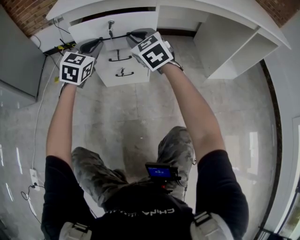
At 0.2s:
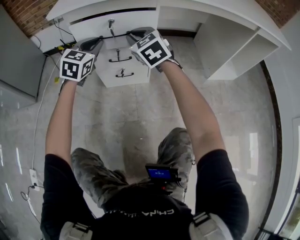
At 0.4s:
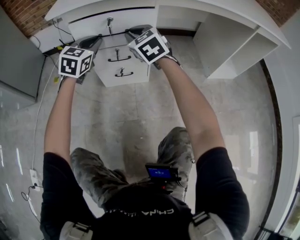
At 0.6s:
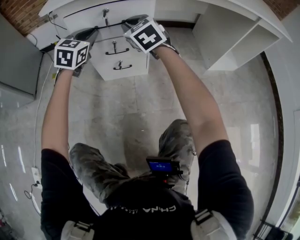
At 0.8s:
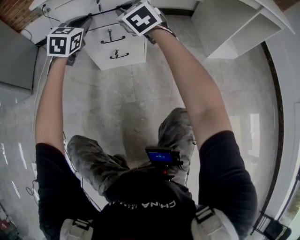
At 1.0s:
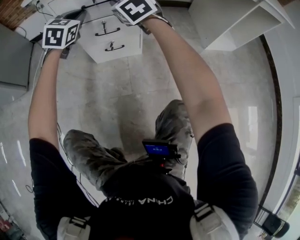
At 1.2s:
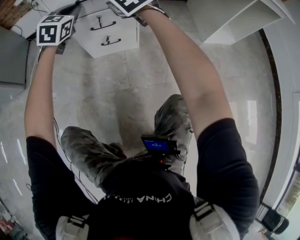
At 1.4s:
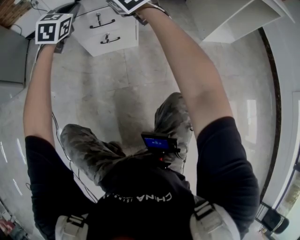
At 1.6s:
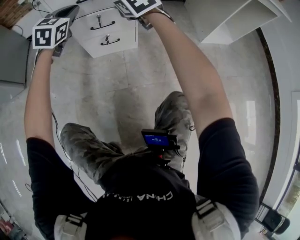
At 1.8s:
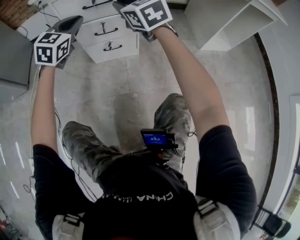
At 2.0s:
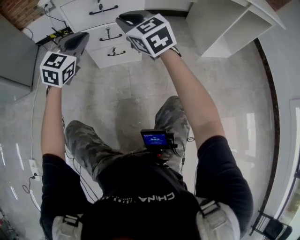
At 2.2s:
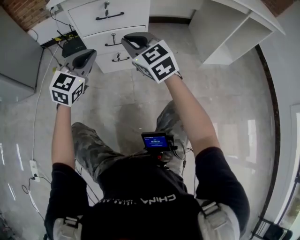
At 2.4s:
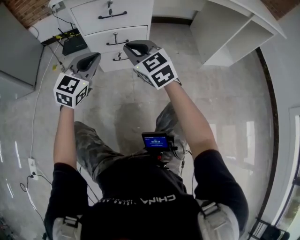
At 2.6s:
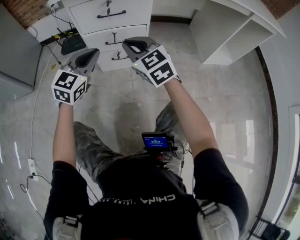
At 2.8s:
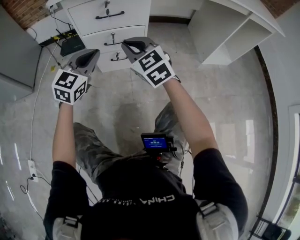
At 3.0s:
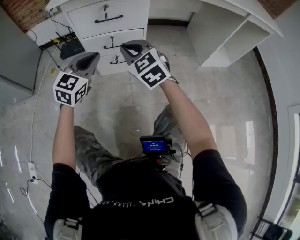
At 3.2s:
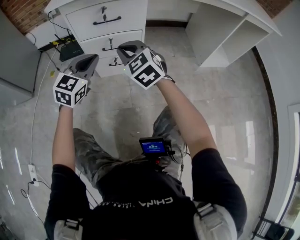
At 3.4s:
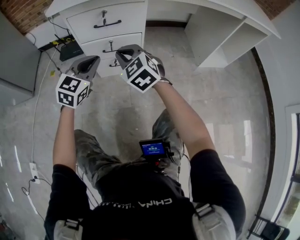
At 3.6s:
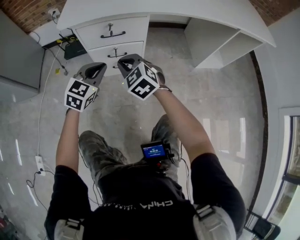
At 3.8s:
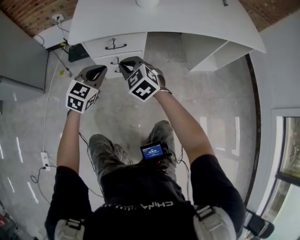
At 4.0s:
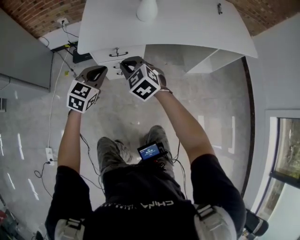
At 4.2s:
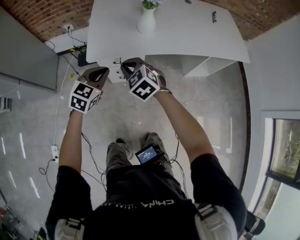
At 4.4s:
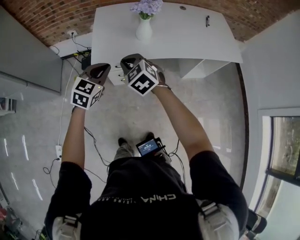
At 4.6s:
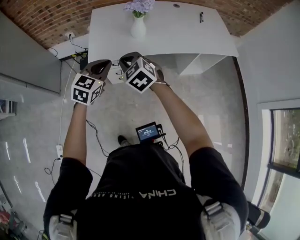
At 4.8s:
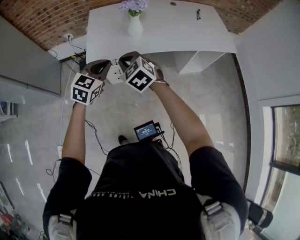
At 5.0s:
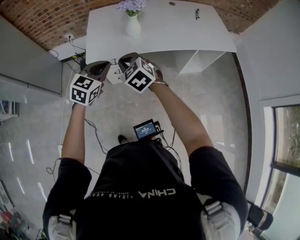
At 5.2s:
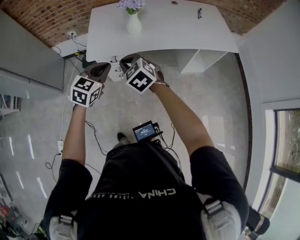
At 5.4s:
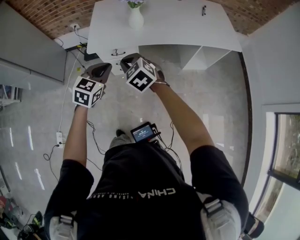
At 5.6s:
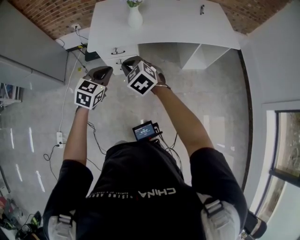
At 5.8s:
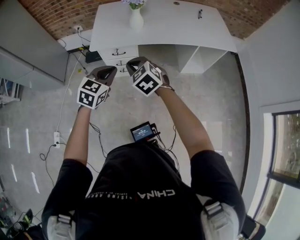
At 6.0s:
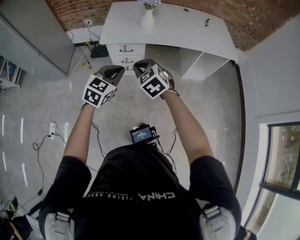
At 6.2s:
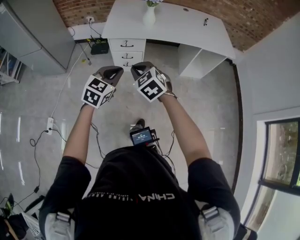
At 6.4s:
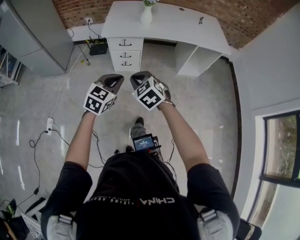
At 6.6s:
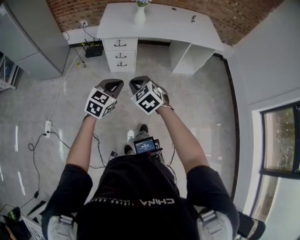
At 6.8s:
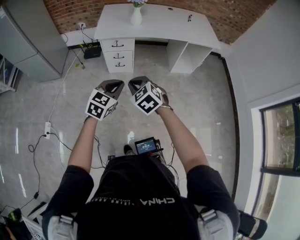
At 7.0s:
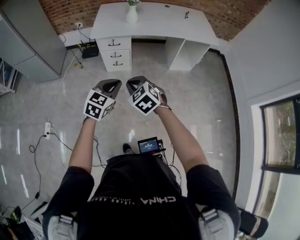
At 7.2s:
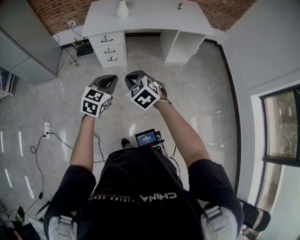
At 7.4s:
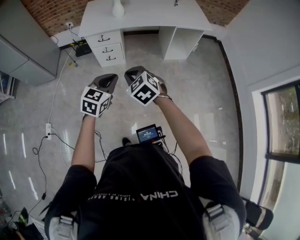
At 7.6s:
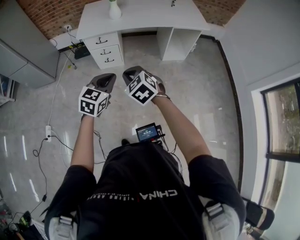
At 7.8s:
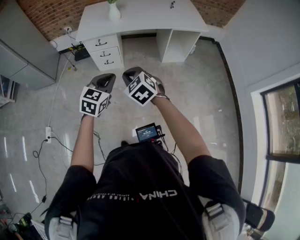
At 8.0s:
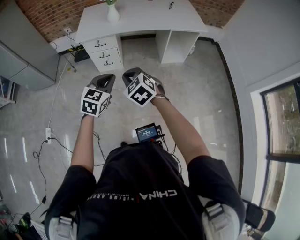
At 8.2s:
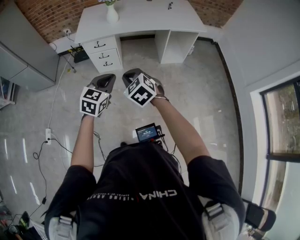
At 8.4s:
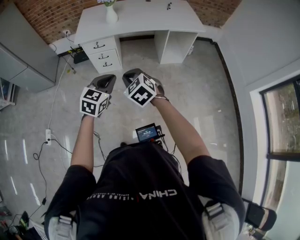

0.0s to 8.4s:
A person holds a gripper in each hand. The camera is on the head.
0.0s to 1.4s: The grippers stay close to where they were, moving slightly.
1.4s to 2.8s: Both grippers travel together backward, some 15 cm.
2.8s to 4.2s: The two grippers go some 40 cm upward.
4.2s to 5.6s: Both grippers move backward, to the right and upward, approximately 20 cm.
5.6s to 7.0s: Both grippers travel together backward, some 35 cm.
7.0s to 8.4s: Both grippers move to the right, approximately 10 cm.

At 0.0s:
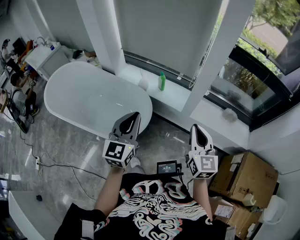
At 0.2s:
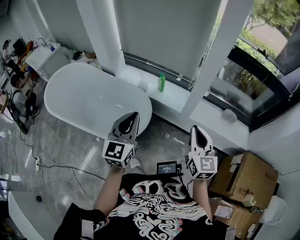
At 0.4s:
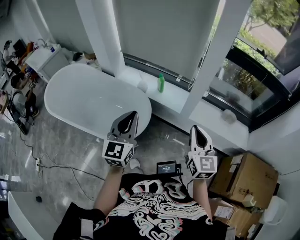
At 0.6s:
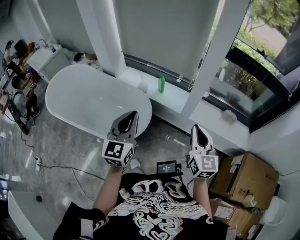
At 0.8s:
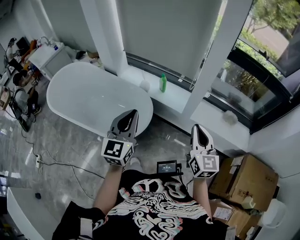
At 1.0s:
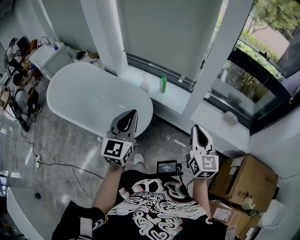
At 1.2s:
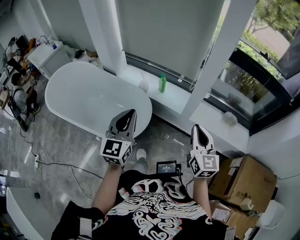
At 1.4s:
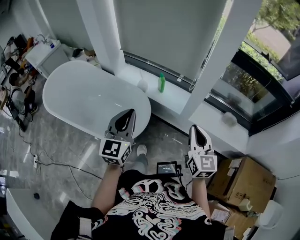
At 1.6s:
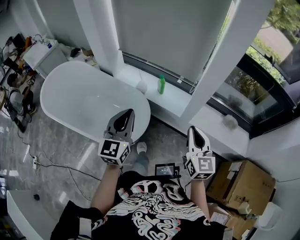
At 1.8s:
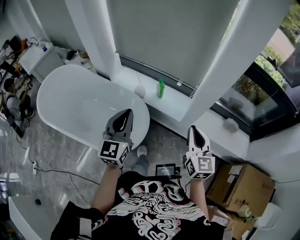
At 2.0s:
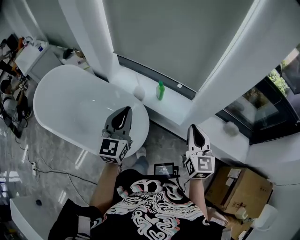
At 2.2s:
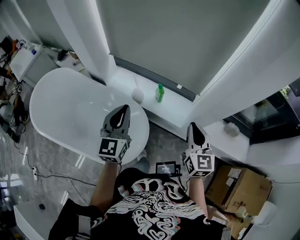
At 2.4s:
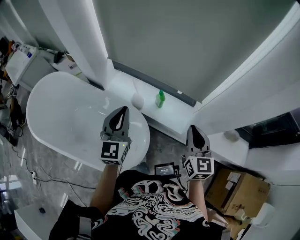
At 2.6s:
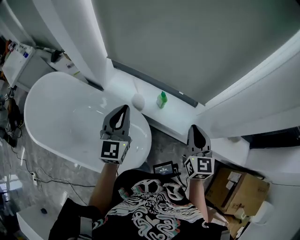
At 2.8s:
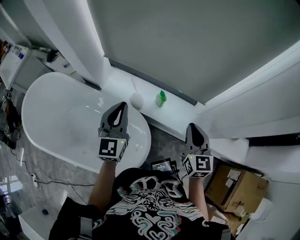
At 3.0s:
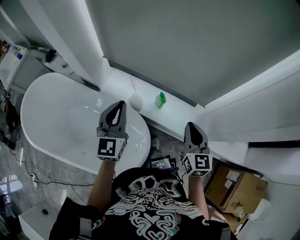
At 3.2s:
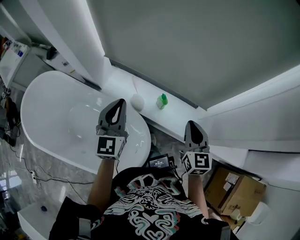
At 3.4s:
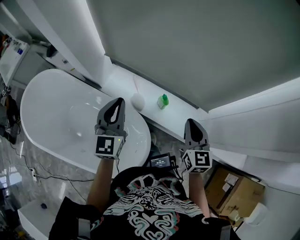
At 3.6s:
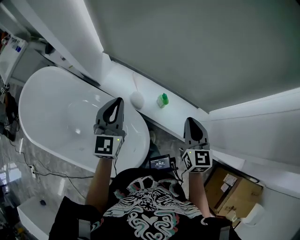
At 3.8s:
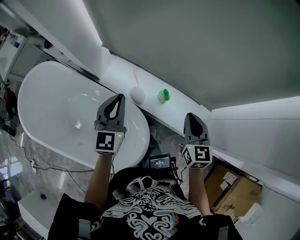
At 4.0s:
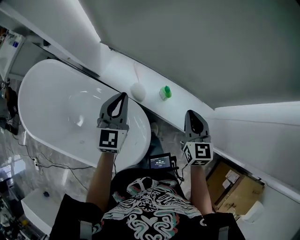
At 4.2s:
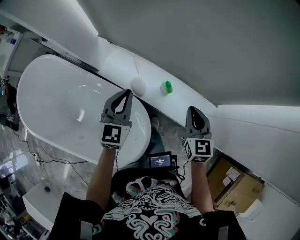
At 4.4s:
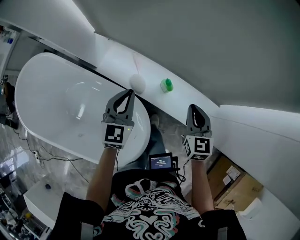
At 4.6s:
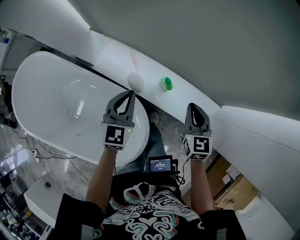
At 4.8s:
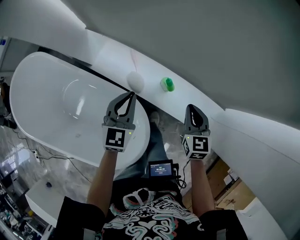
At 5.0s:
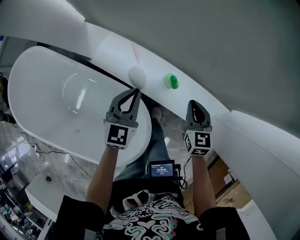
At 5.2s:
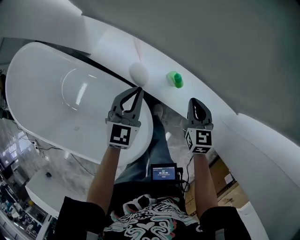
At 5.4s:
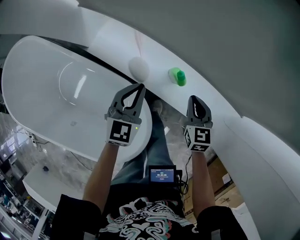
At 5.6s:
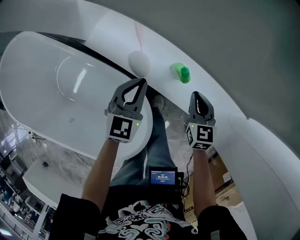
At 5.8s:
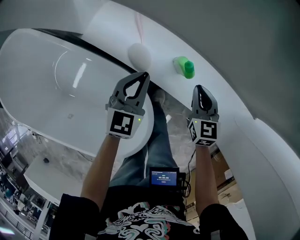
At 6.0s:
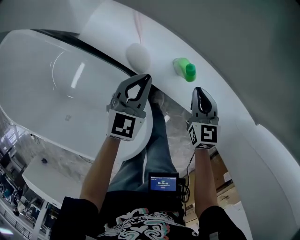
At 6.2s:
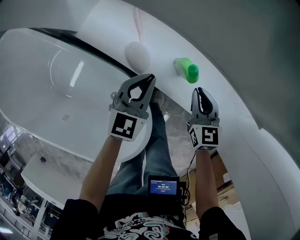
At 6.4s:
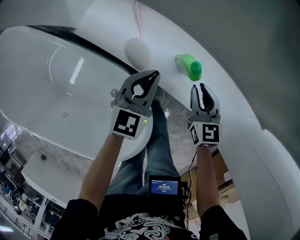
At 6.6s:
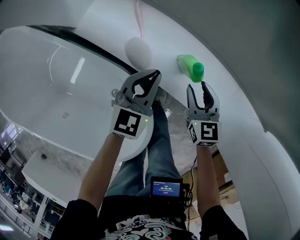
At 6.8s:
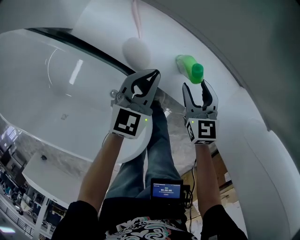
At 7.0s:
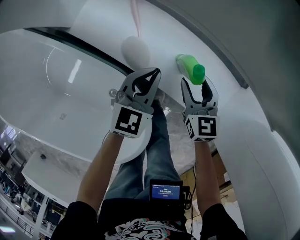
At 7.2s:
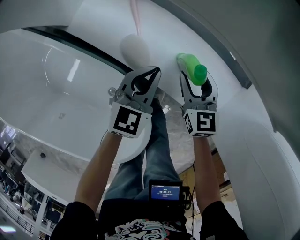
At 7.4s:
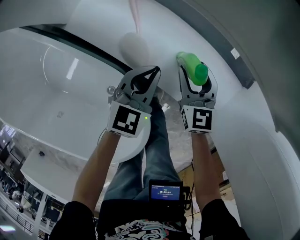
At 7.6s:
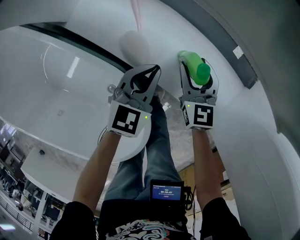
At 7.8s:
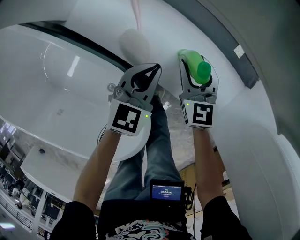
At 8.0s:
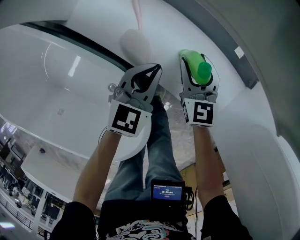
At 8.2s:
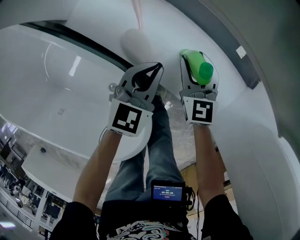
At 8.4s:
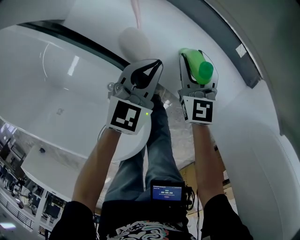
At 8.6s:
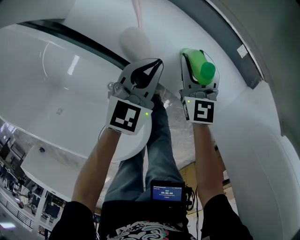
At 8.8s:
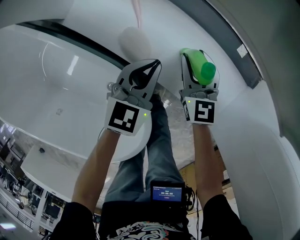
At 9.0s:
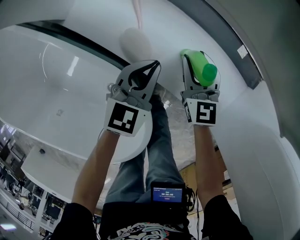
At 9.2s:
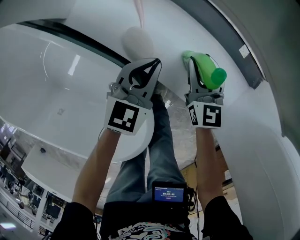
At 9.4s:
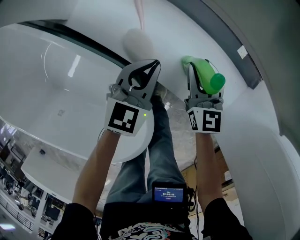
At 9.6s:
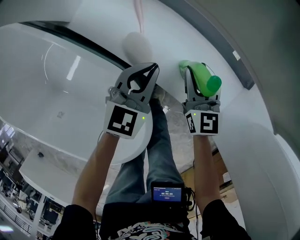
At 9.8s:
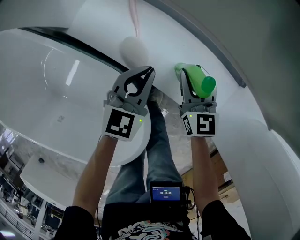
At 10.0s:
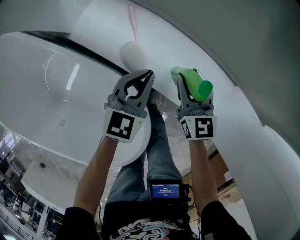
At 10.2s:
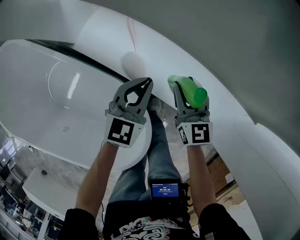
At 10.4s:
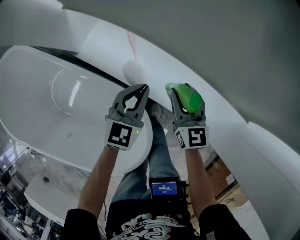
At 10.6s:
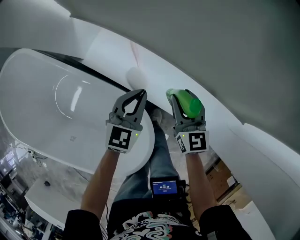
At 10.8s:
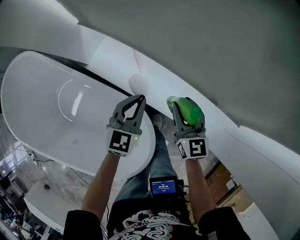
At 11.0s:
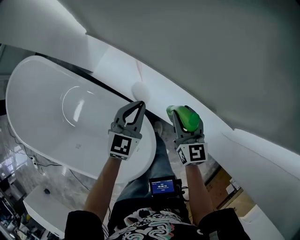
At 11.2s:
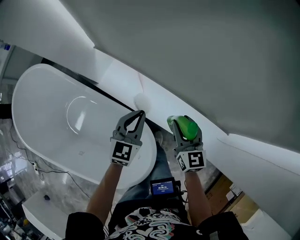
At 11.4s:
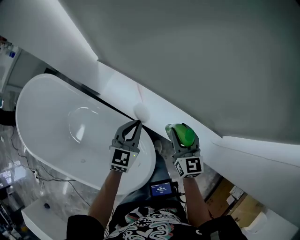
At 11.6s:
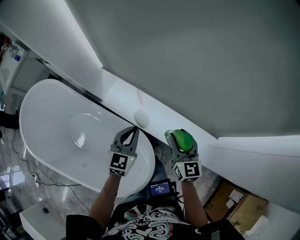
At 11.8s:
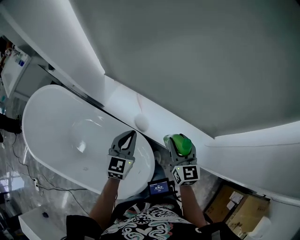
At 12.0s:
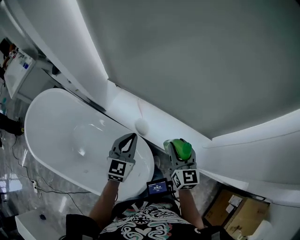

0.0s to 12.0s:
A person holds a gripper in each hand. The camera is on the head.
0.0s to 1.6s: Both grippers move forward, about 10 cm.
1.6s to 3.0s: The two grippers go some 35 cm forward.
3.0s to 4.4s: Both grippers move downward and forward, roughly 20 cm.
4.4s to 6.0s: Both grippers move downward, roughly 25 cm.
6.0s to 7.6s: The left gripper goes roughly 10 cm downward. Meanwhile the right gripper goes about 10 cm downward, forward and to the left, and opens up.
7.6s to 9.0s: The grippers move only a little.
9.0s to 10.4s: The two grippers go about 15 cm upward.
10.4s to 12.0s: The two grippers go some 30 cm upward and backward.

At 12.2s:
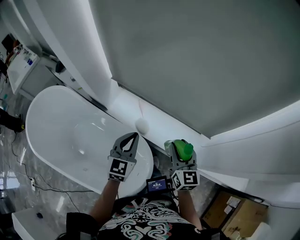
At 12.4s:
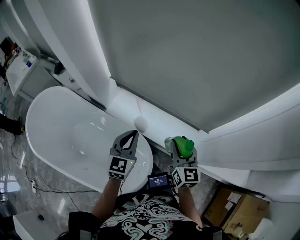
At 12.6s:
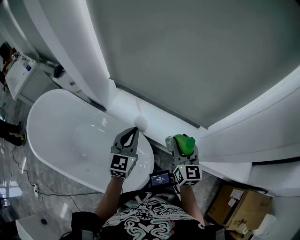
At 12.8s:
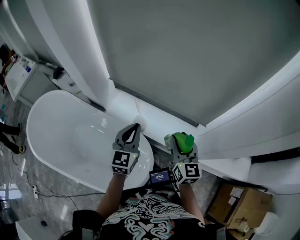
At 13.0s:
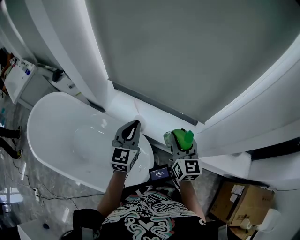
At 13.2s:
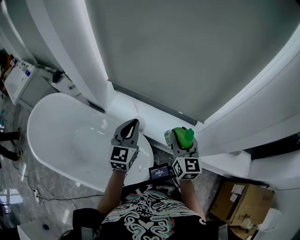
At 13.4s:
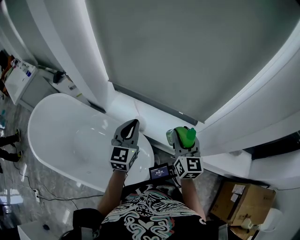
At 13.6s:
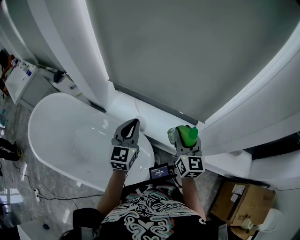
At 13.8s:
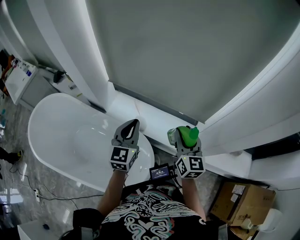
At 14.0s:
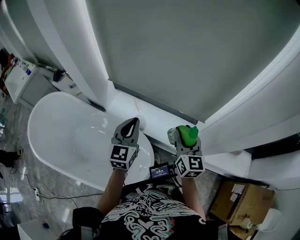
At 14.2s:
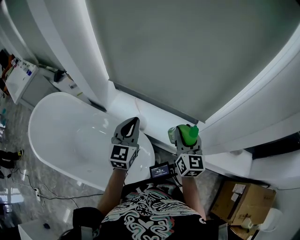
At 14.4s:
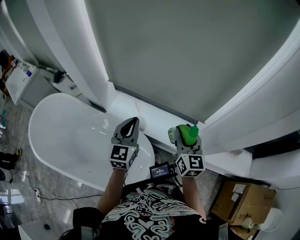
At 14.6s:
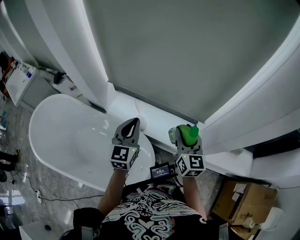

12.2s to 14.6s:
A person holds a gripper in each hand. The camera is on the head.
12.2s to 13.4s: Both grippers move upward, about 5 cm.
13.4s to 14.6s: The two grippers keep their place.

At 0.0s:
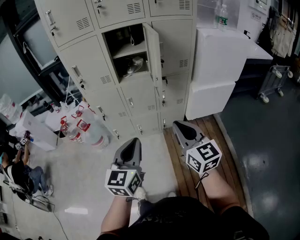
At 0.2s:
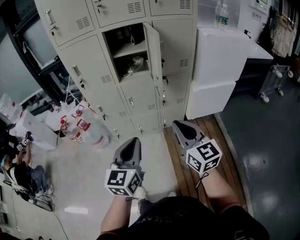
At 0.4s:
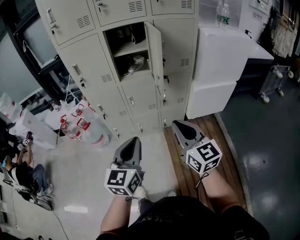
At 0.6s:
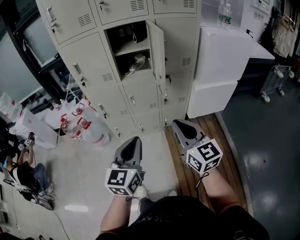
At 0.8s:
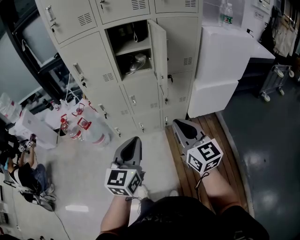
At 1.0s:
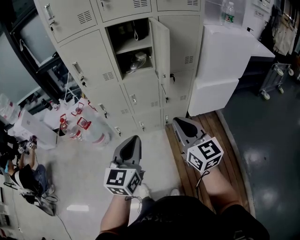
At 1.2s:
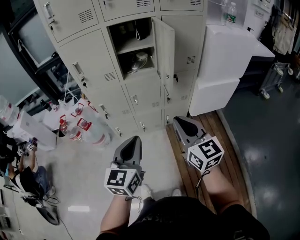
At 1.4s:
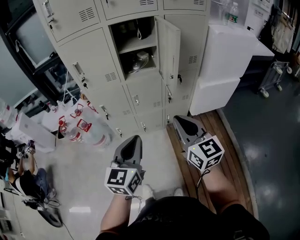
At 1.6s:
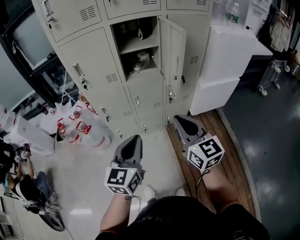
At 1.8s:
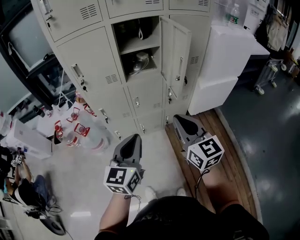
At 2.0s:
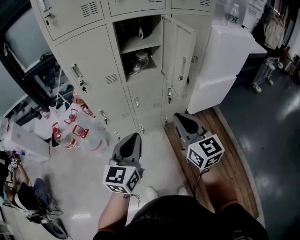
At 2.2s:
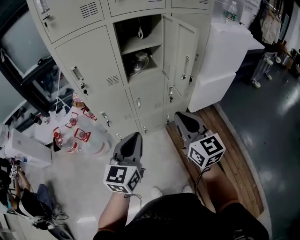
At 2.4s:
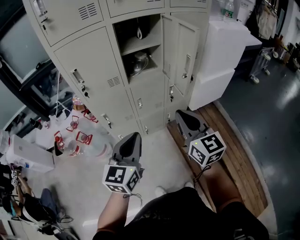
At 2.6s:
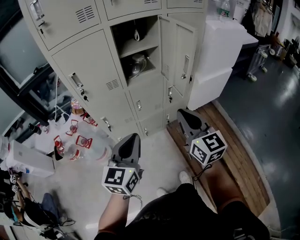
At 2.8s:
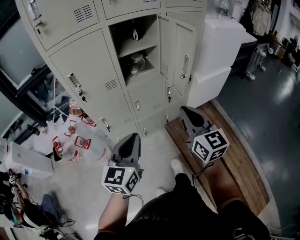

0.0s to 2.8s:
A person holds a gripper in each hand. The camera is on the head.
0.0s to 1.4s: The two grippers go some 10 cm to the left and forward.
1.4s to 2.8s: Both grippers travel together to the left and forward, some 10 cm.
